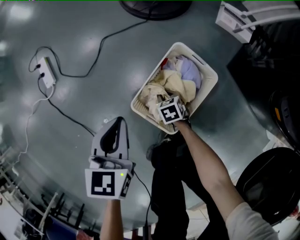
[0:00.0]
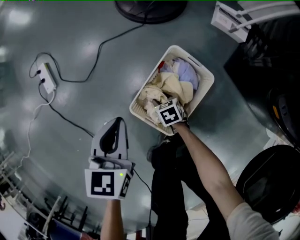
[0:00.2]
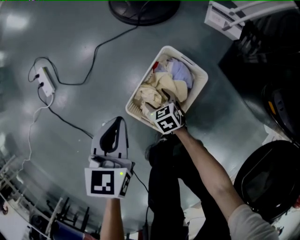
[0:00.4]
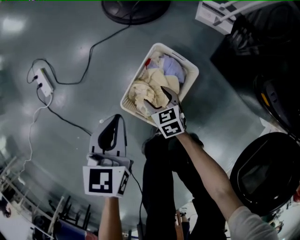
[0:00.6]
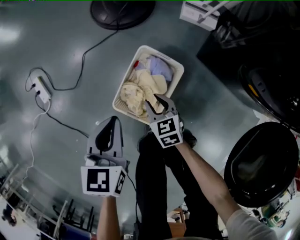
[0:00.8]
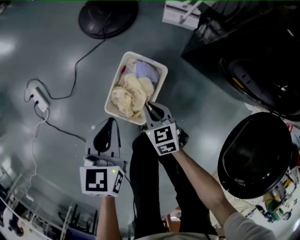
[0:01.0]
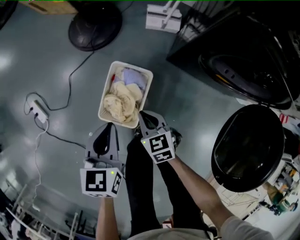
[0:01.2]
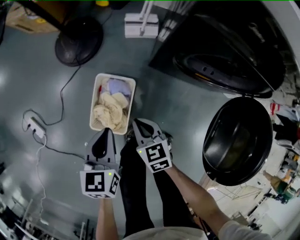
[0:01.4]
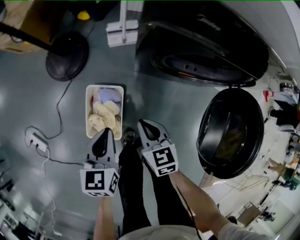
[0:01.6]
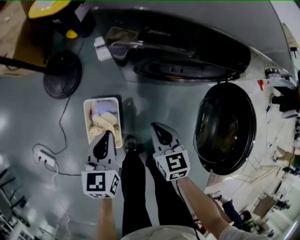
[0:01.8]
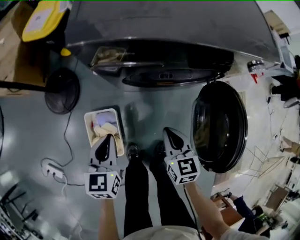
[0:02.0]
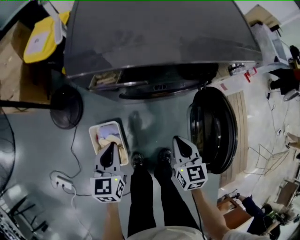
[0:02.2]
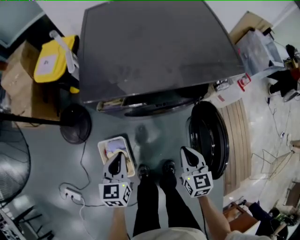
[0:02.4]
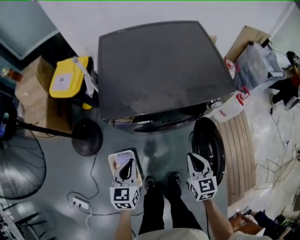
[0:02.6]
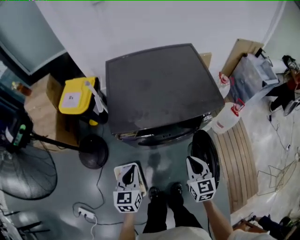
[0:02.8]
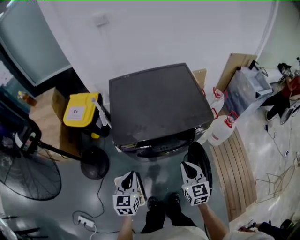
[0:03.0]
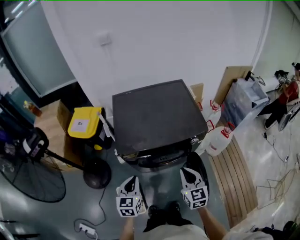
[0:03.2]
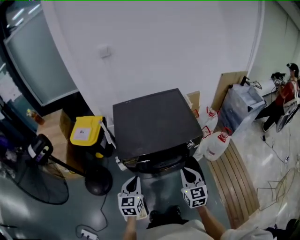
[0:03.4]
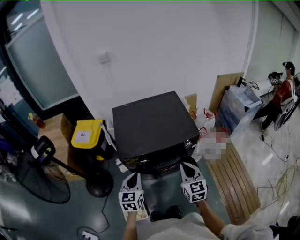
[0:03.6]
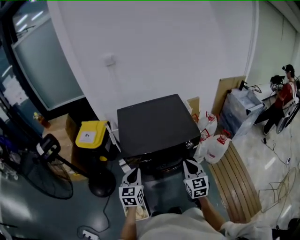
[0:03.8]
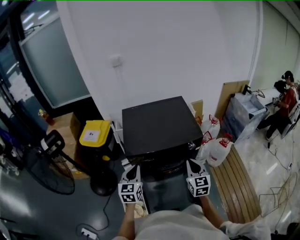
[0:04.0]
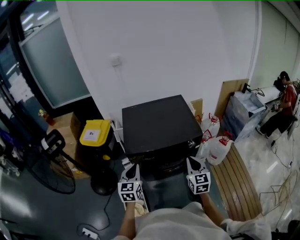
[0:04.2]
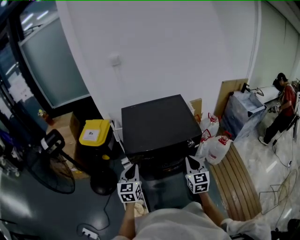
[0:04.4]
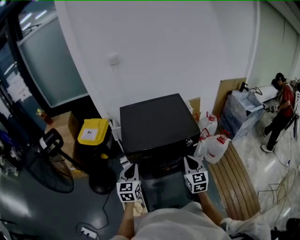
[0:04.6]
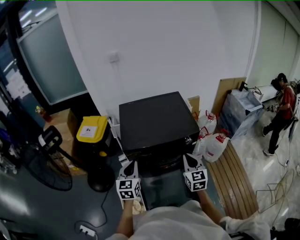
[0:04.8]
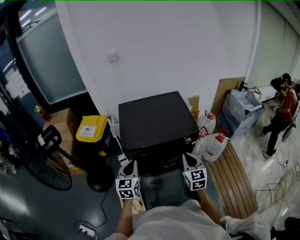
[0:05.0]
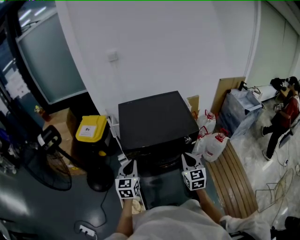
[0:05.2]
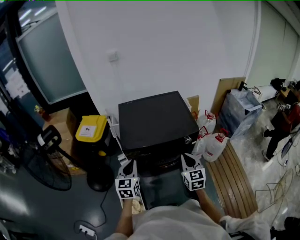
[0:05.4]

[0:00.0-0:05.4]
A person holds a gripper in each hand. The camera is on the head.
0.0 to 1.4 s: The left gripper changes place by roughly 30 cm, and swivels some 20 degrees. Meanwhile the right gripper travels upward by roughly 40 cm, changes its angle by roughly 40 degrees, and opens and closes again.
1.4 to 2.8 s: Both grippers travel together upward, roughly 35 cm. The right gripper changes its angle by approximately 50 degrees. Meanwhile the left gripper turns by roughly 30 degrees.
2.8 to 4.0 s: The two grippers go approximately 20 cm upward.
4.0 to 5.4 s: Both grippers stay about where they are.

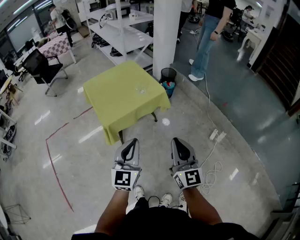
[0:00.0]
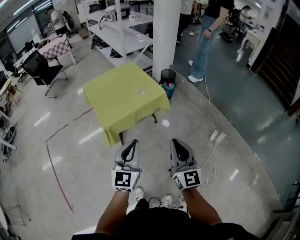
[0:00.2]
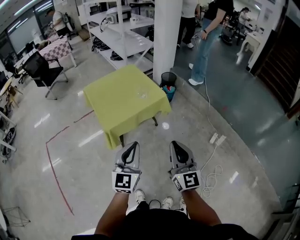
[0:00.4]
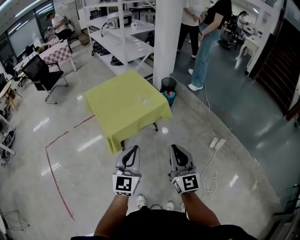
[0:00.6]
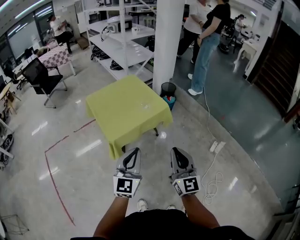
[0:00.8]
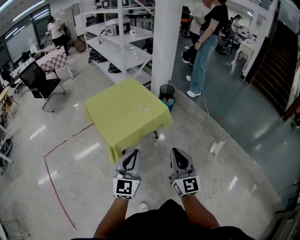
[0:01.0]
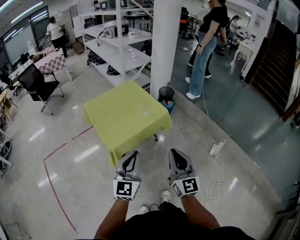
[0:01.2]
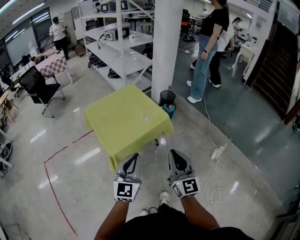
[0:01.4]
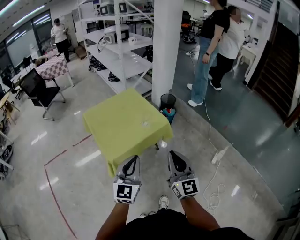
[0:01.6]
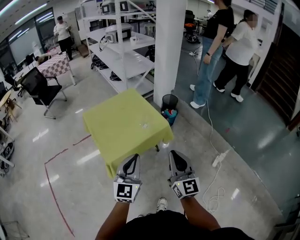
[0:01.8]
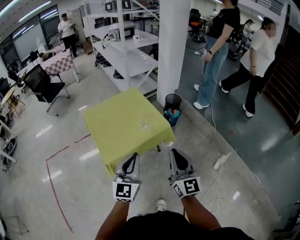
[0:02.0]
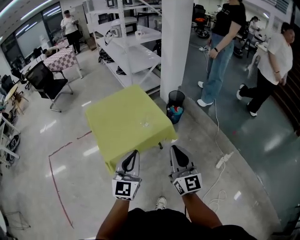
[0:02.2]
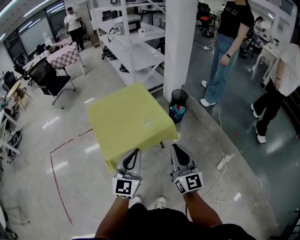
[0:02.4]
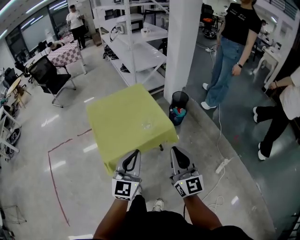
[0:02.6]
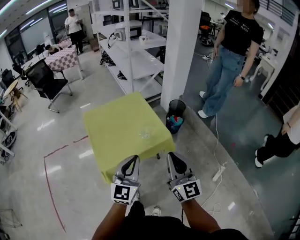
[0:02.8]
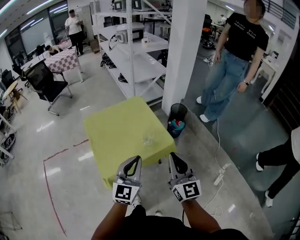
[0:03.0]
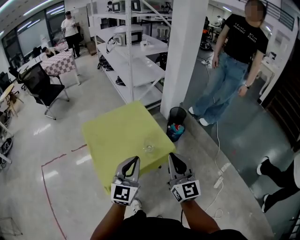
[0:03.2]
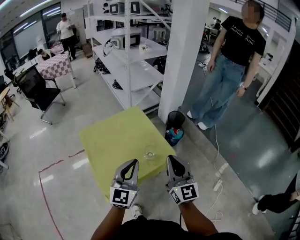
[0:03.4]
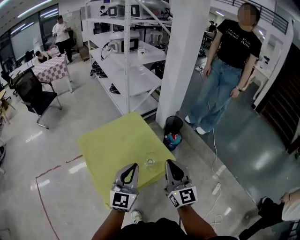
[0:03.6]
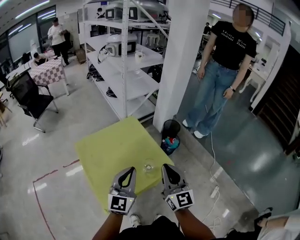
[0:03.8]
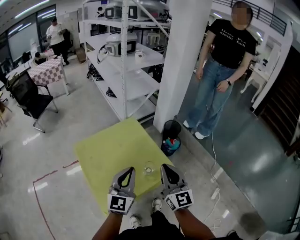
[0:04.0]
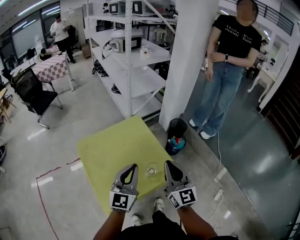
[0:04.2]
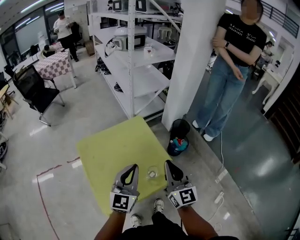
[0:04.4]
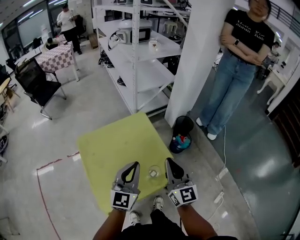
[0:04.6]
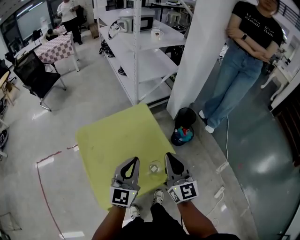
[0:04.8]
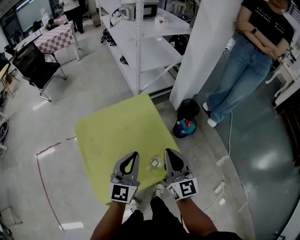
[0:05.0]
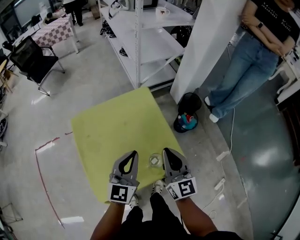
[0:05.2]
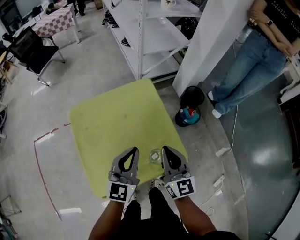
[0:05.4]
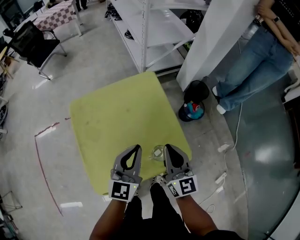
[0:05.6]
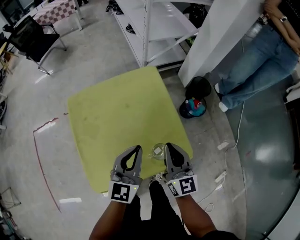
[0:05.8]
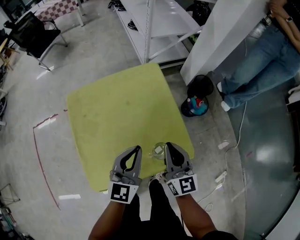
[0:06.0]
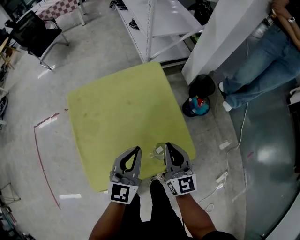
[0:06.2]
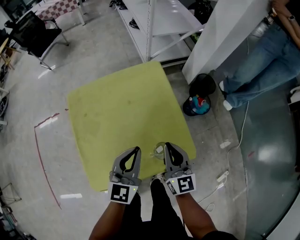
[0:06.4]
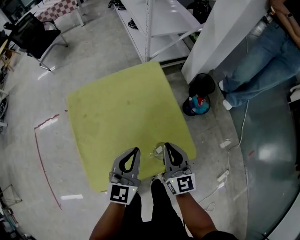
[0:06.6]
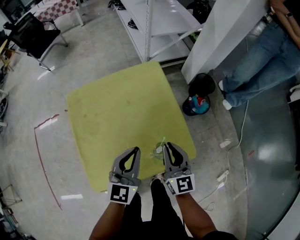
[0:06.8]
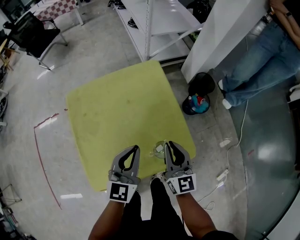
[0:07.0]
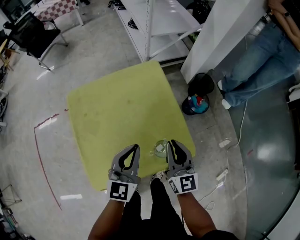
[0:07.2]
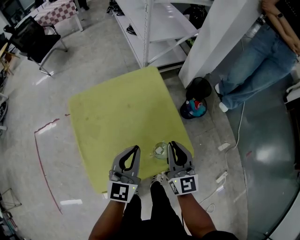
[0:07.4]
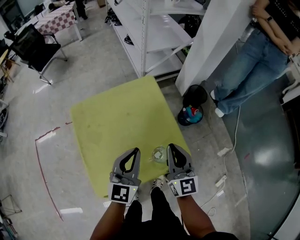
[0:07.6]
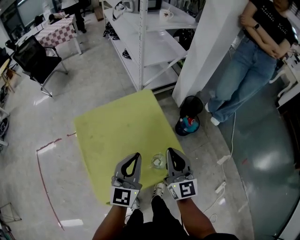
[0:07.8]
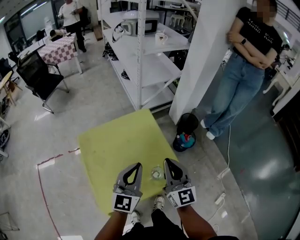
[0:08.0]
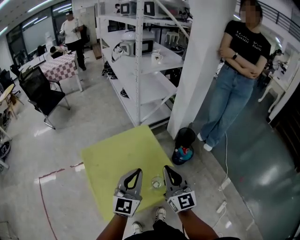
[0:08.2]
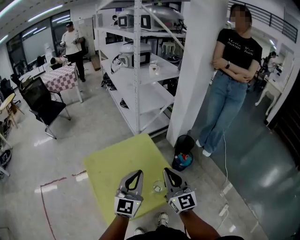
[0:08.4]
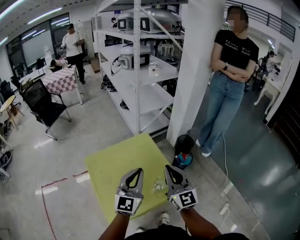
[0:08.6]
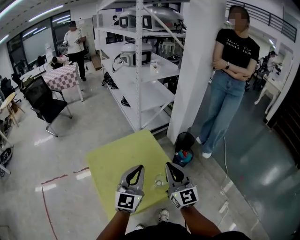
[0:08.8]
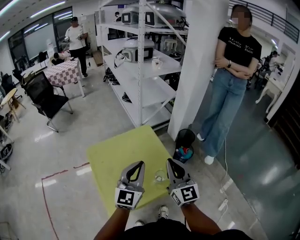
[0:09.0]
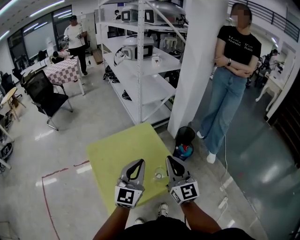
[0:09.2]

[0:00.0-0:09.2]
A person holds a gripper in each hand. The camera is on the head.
0.0 to 1.6 s: The grippers both shift forward and to the left by about 15 cm.
1.6 to 3.0 s: The grippers both shift forward by about 20 cm.
3.0 to 4.6 s: The grippers both shift forward by about 25 cm.
4.6 to 6.2 s: Both grippers travel together downward, approximately 15 cm.
6.2 to 7.6 s: The grippers both shift upward by roughly 5 cm.
7.6 to 9.2 s: Both grippers travel together upward, approximately 15 cm.

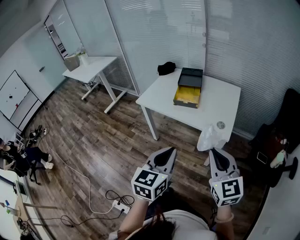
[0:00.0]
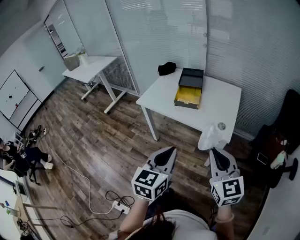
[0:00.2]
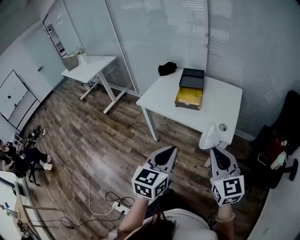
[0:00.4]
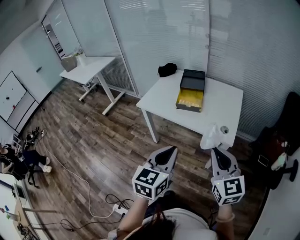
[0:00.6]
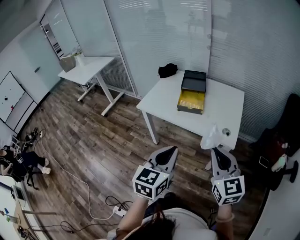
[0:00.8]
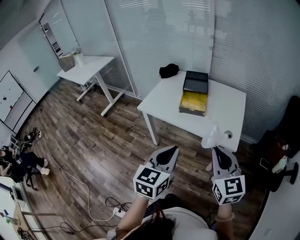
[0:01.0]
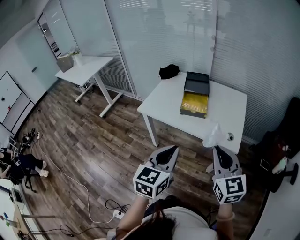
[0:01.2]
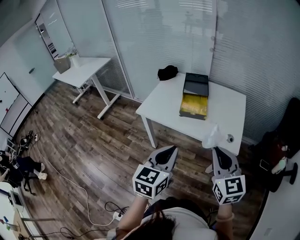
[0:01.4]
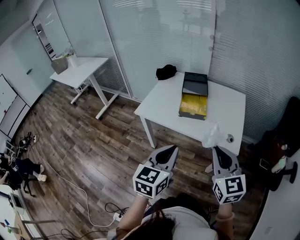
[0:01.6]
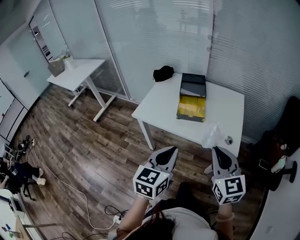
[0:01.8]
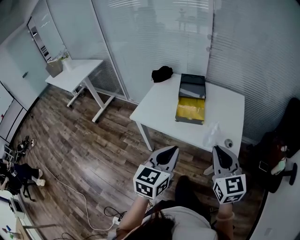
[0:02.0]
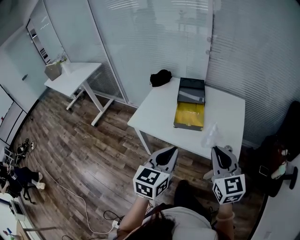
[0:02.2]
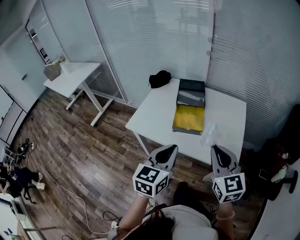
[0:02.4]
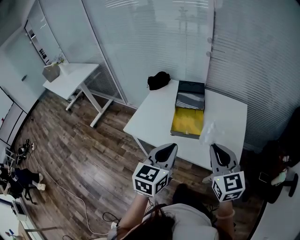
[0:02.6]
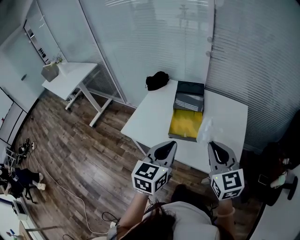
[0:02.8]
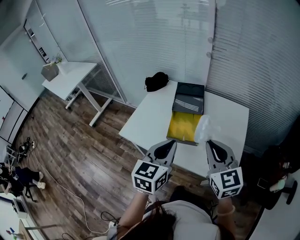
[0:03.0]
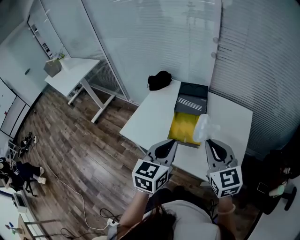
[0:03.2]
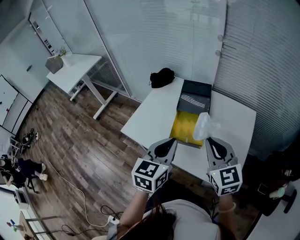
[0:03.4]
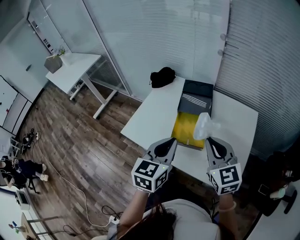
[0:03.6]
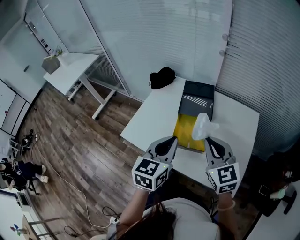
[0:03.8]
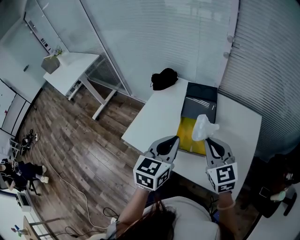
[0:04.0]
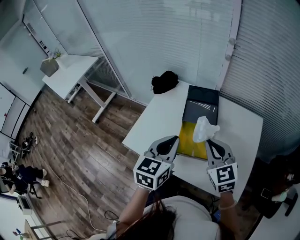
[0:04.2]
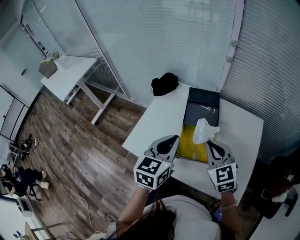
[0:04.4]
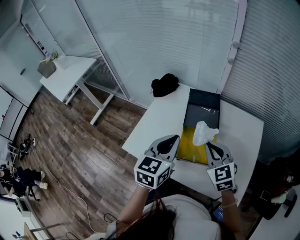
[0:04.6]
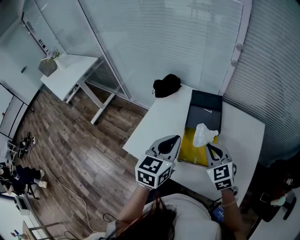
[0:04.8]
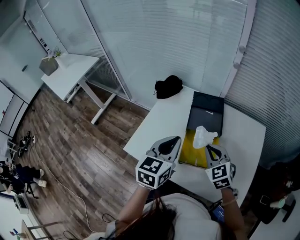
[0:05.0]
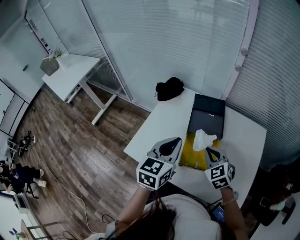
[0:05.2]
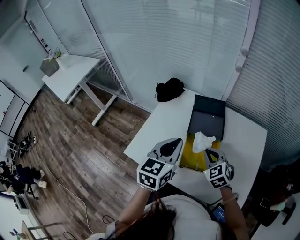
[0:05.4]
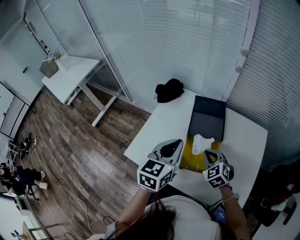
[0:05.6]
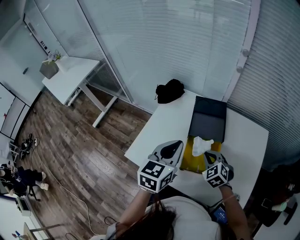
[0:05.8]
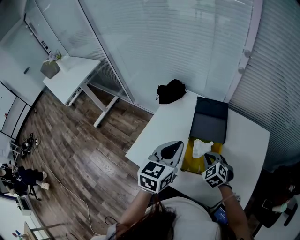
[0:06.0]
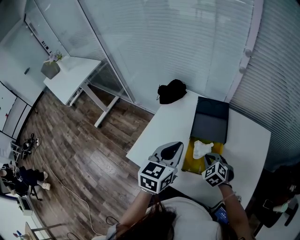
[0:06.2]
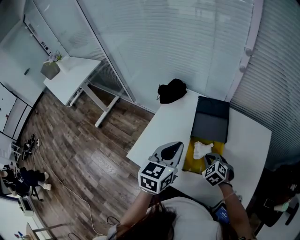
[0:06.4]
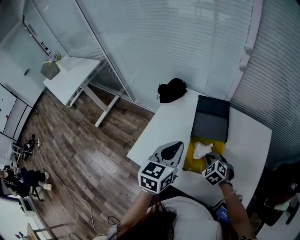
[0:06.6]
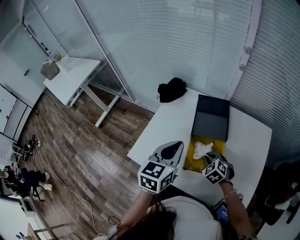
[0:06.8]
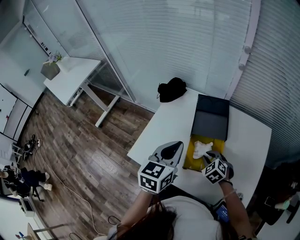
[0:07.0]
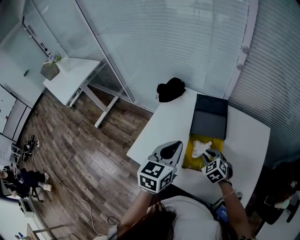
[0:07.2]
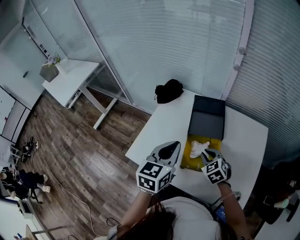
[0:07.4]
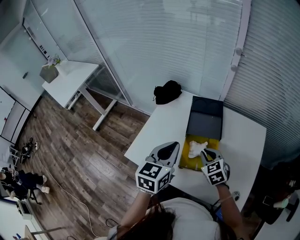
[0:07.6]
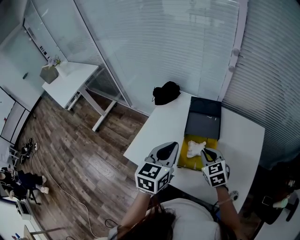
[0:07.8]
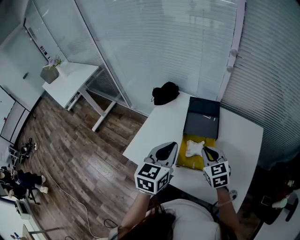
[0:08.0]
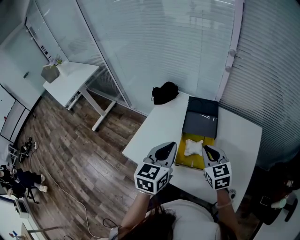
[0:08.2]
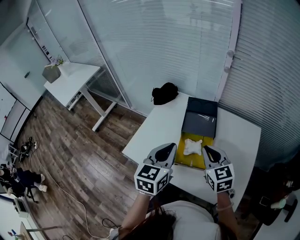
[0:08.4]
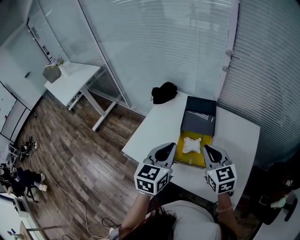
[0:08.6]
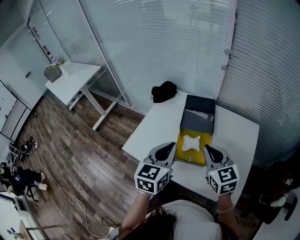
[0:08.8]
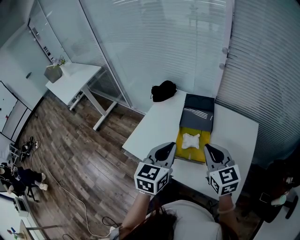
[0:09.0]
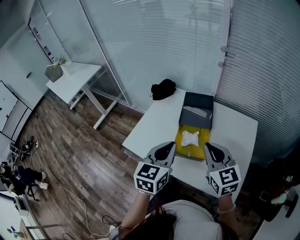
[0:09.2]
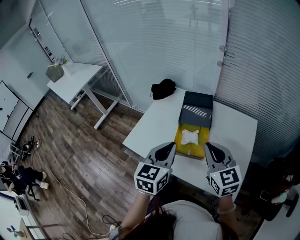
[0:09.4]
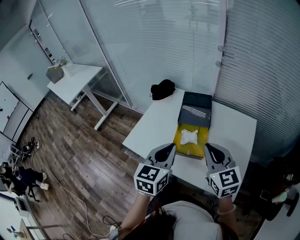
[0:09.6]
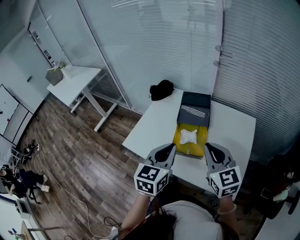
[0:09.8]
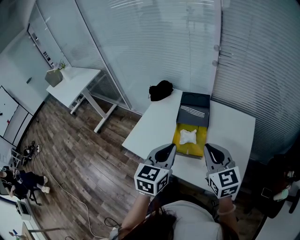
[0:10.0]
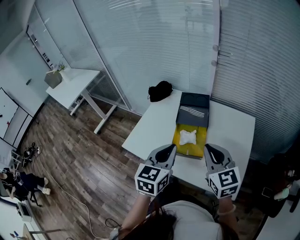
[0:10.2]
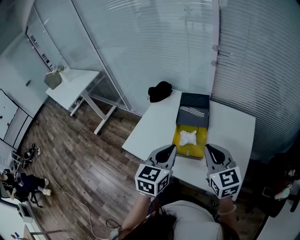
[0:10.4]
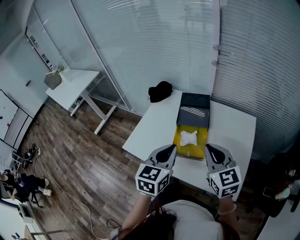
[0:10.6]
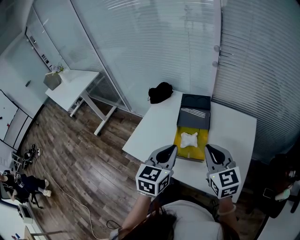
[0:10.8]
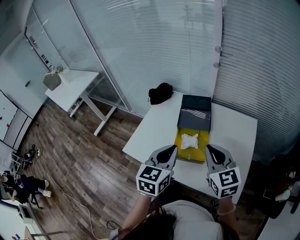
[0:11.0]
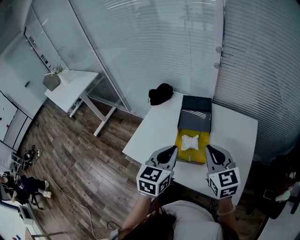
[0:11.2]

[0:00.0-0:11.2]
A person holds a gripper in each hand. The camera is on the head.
0.0 to 1.6 s: Both grippers move forward and to the left, approximately 15 cm.
1.6 to 3.2 s: The grippers both shift forward by approximately 25 cm.
3.2 to 4.8 s: The left gripper shifts approximately 15 cm forward and to the left. Meanwhile the right gripper is displaced forward and downward by about 20 cm.
4.8 to 6.4 s: The right gripper travels downward by about 15 cm, and turns by roughly 30 degrees.
6.4 to 8.0 s: The right gripper goes roughly 15 cm upward, and rotates approximately 30 degrees.
8.0 to 9.6 s: The right gripper goes some 15 cm upward and backward, while the left gripper heads backward, covering approximately 10 cm.
9.6 to 11.2 s: The grippers make only small movements.
